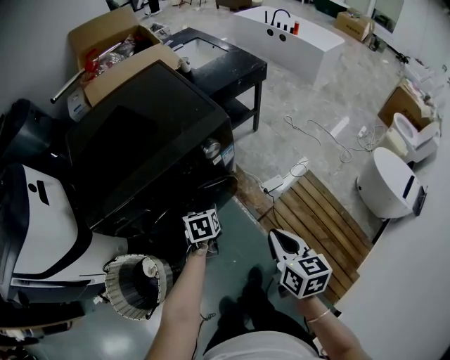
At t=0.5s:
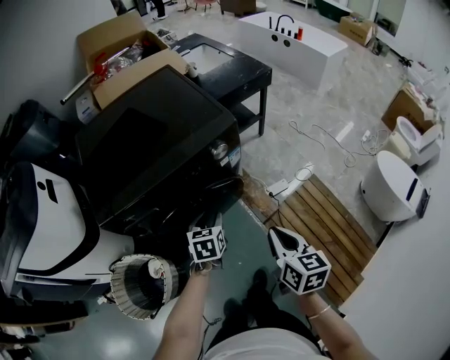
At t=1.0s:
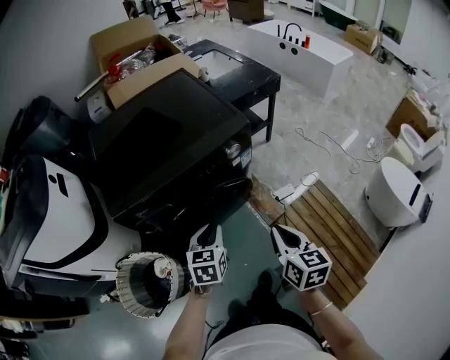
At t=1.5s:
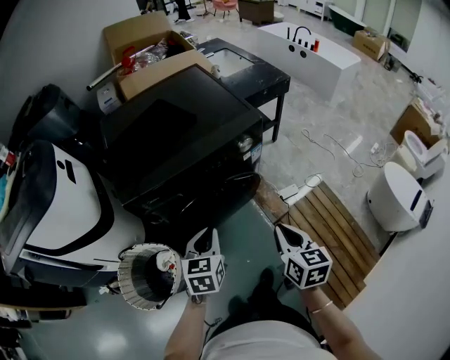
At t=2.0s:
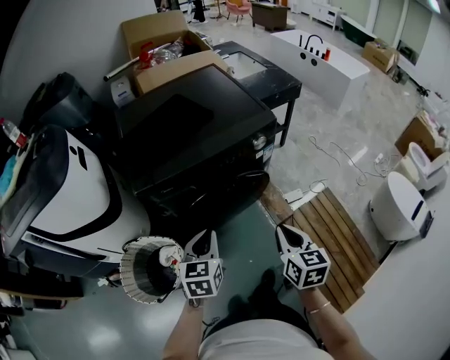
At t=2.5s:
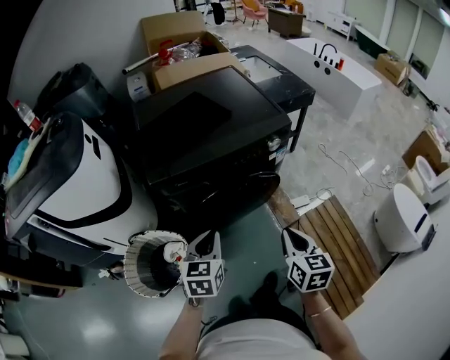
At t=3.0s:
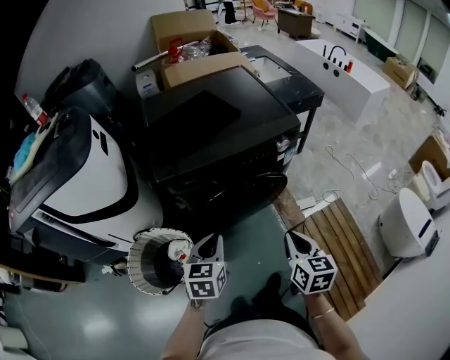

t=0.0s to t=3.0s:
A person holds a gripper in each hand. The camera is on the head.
t=0.0s to t=1.5s: The left gripper travels backward, upward and to the left by about 25 cm, and closes up; the right gripper goes about 10 cm to the left.
t=1.5s to t=3.0s: The right gripper shifts approximately 10 cm to the left. The left gripper moves to the left and backward, roughly 15 cm.

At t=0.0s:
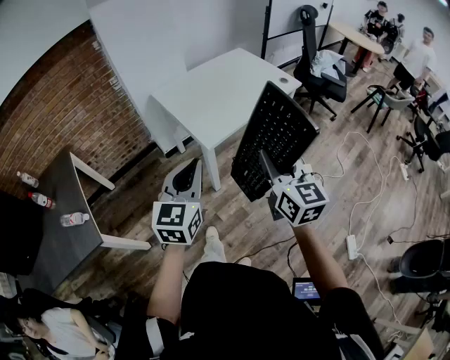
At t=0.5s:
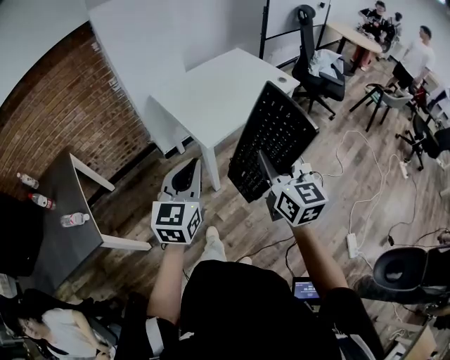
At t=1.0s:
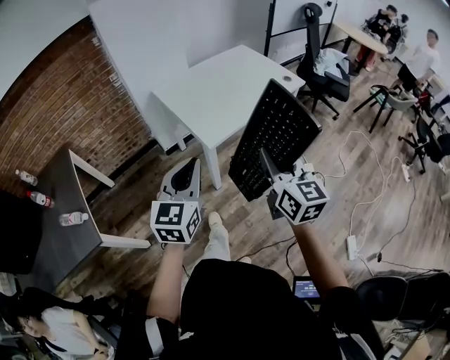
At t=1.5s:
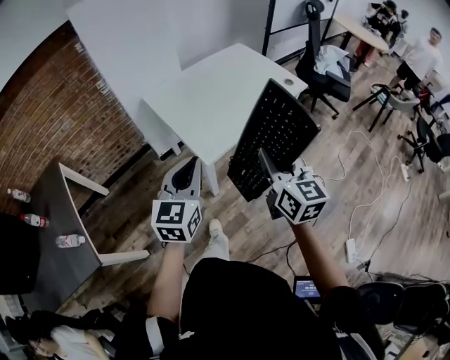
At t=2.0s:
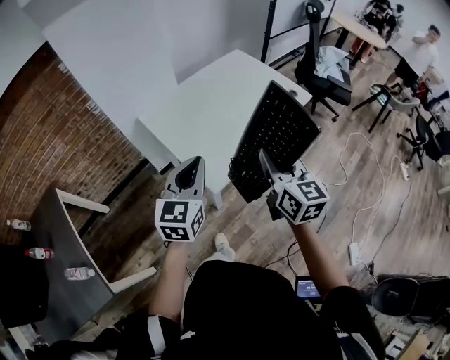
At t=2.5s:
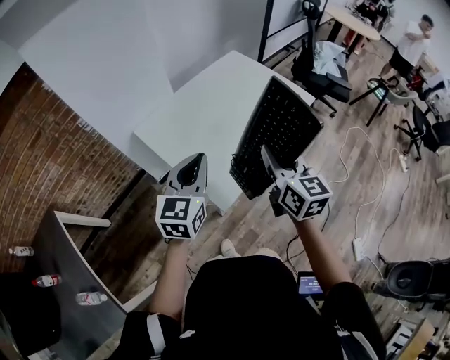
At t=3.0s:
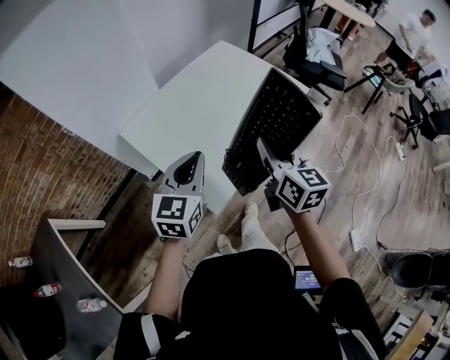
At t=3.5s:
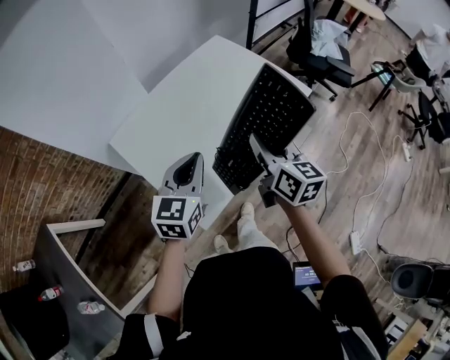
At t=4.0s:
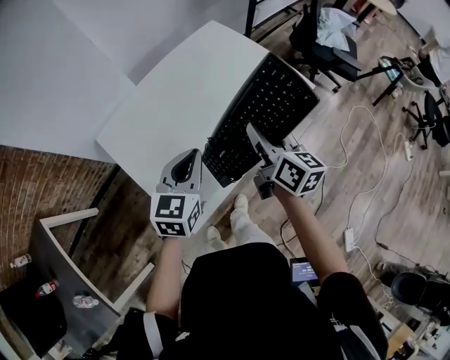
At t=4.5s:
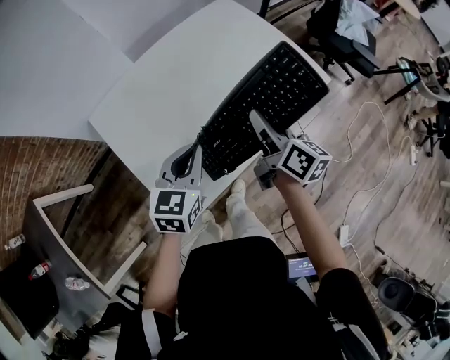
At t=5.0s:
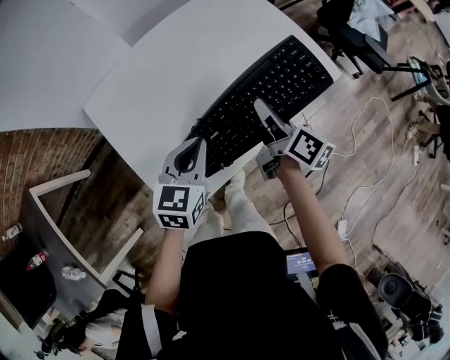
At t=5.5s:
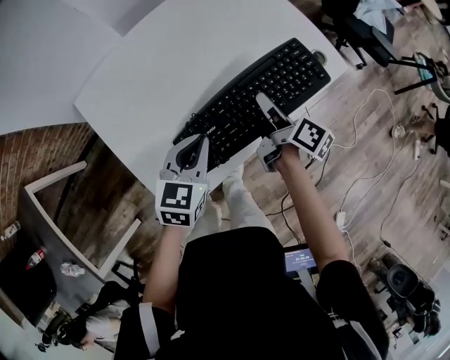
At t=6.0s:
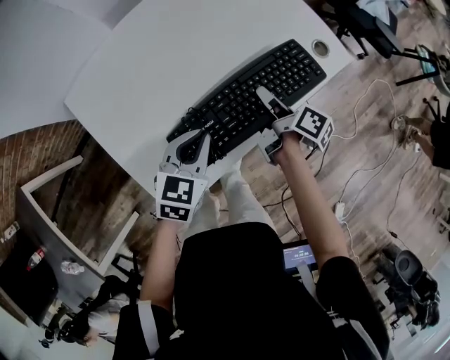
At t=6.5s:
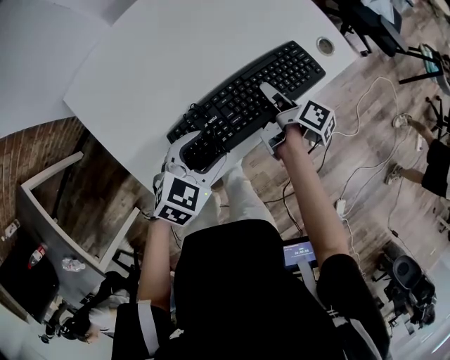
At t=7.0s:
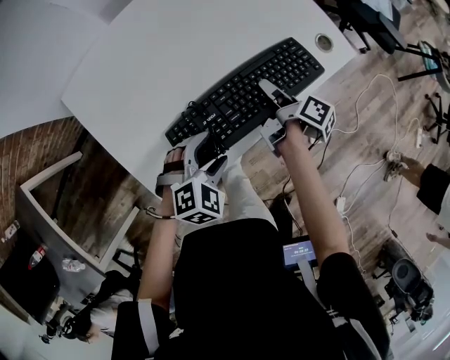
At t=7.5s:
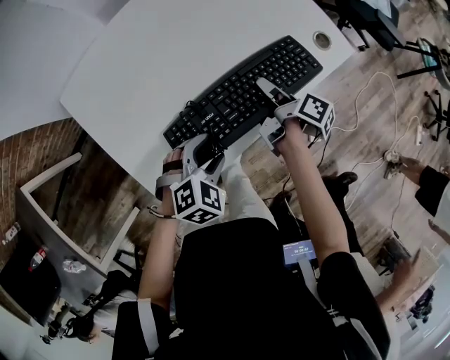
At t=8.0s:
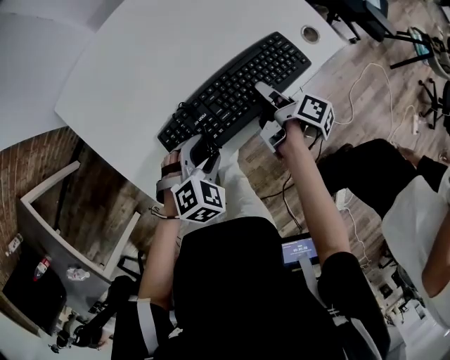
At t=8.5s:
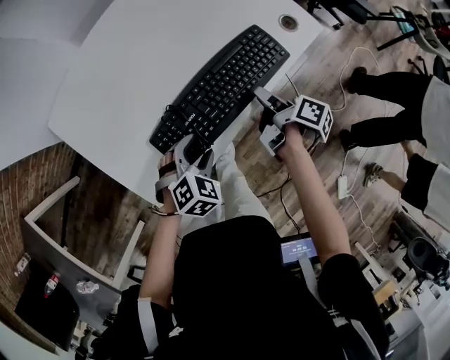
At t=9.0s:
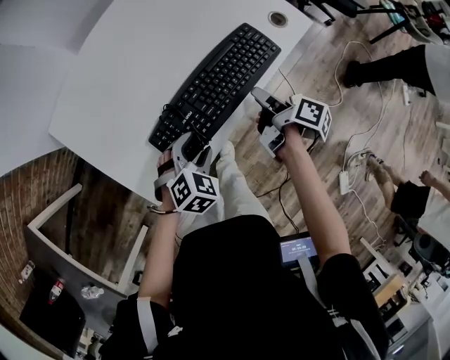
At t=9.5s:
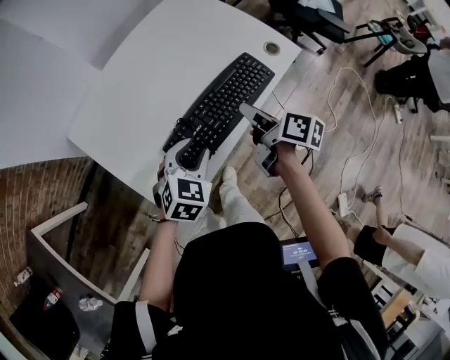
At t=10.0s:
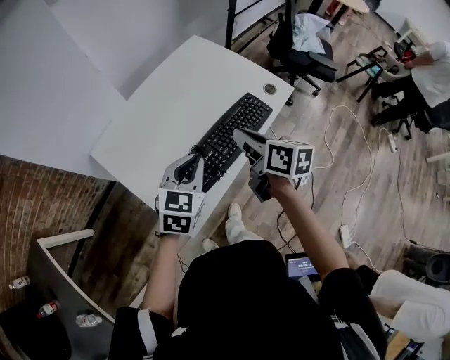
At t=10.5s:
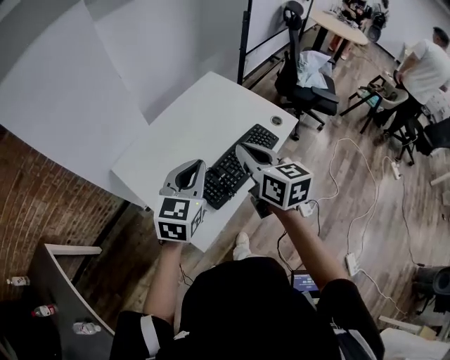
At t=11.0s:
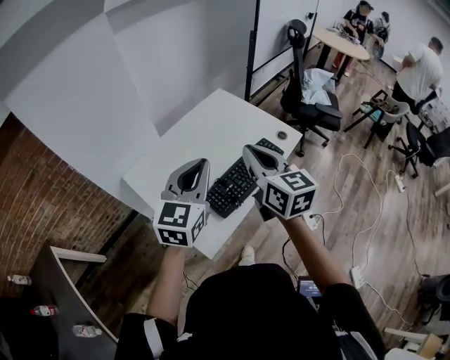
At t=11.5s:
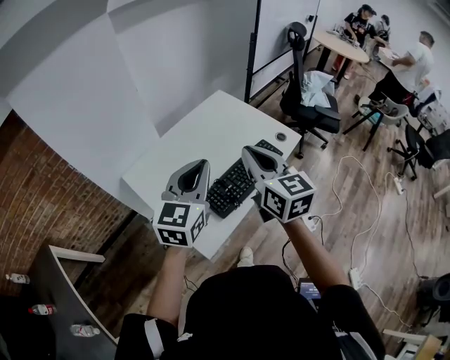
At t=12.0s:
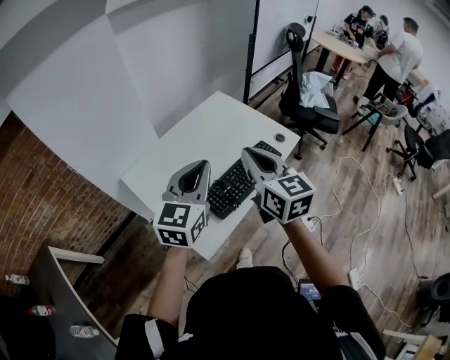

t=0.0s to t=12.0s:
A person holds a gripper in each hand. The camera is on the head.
t=0.0s to t=2.0s: The grippers both shift forward by some 30 cm.
t=2.0s to t=4.0s: The right gripper heads forward, covering about 30 cm, and rotates roughly 20 degrees, while the left gripper moves forward and downward, approximately 30 cm.
t=4.0s to t=6.0s: The two grippers go approximately 20 cm downward. The right gripper rolls clockwise, seen from behind, by some 40 degrees.
t=6.0s to t=8.0s: The left gripper goes roughly 10 cm downward and backward, rotates about 30 degrees, and opens.
t=8.0s to t=10.0s: The grippers both shift upward by some 25 cm. The right gripper rolls counterclockwise, seen from behind, by some 40 degrees, and closes its fingers; the left gripper rotates some 40 degrees, and closes.
t=10.0s to t=12.0s: The two grippers go about 20 cm upward. The right gripper swivels approximately 40 degrees, while the left gripper rotates approximately 20 degrees.

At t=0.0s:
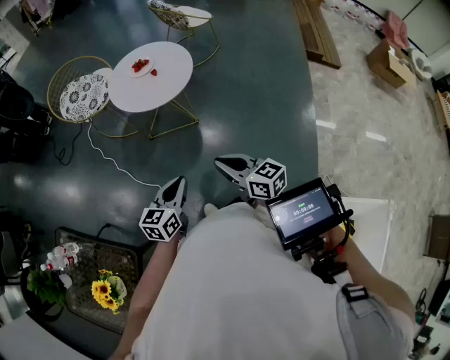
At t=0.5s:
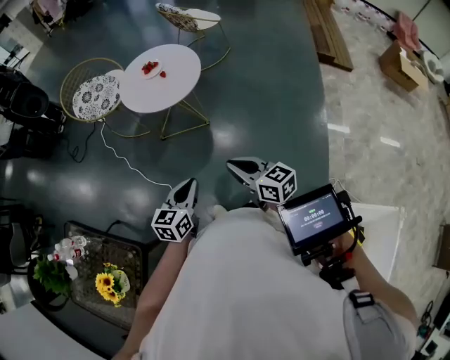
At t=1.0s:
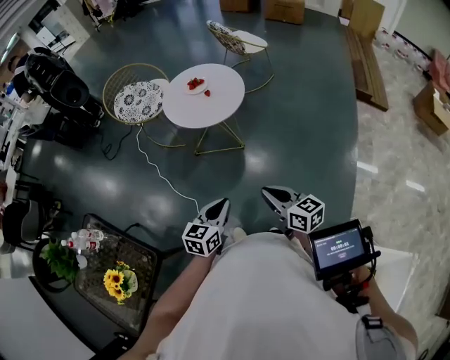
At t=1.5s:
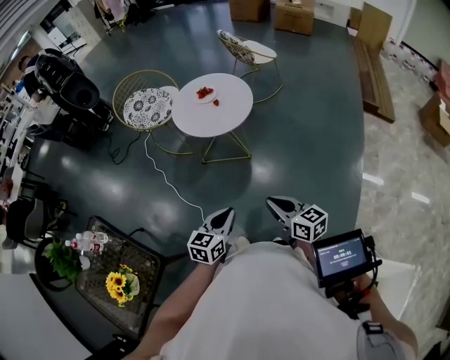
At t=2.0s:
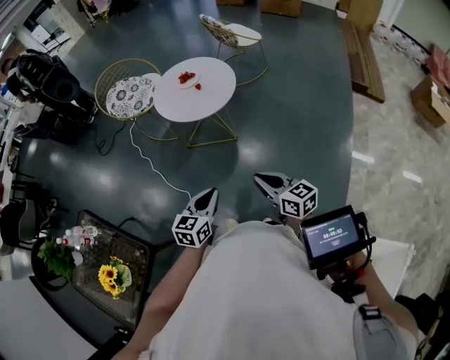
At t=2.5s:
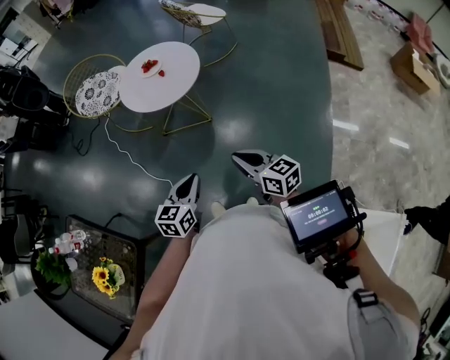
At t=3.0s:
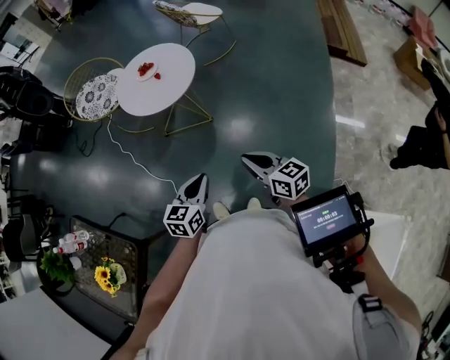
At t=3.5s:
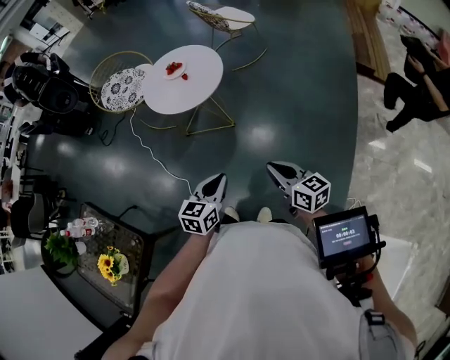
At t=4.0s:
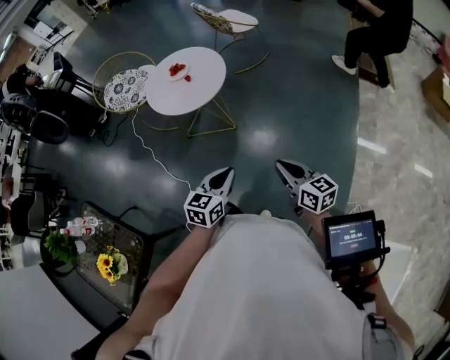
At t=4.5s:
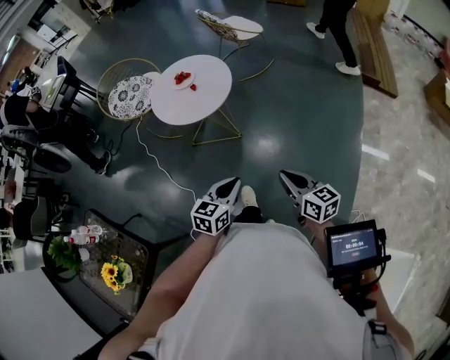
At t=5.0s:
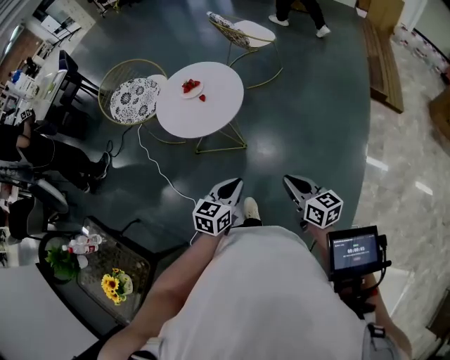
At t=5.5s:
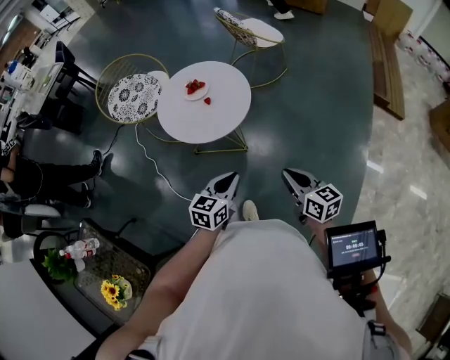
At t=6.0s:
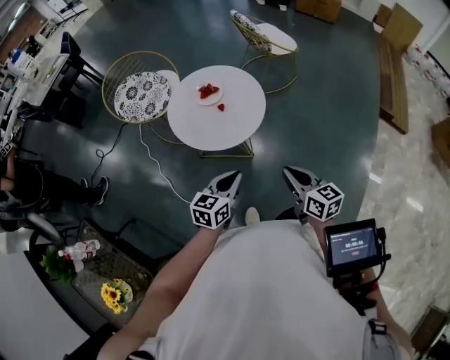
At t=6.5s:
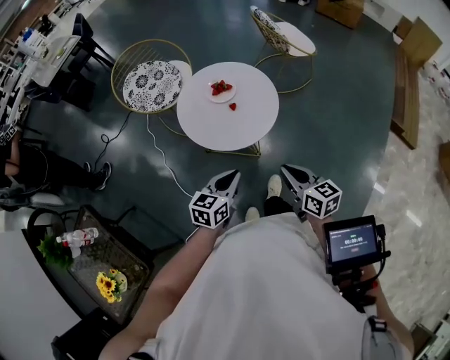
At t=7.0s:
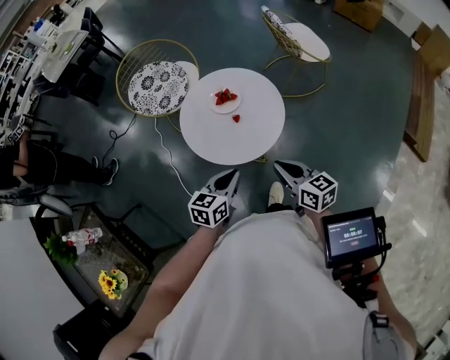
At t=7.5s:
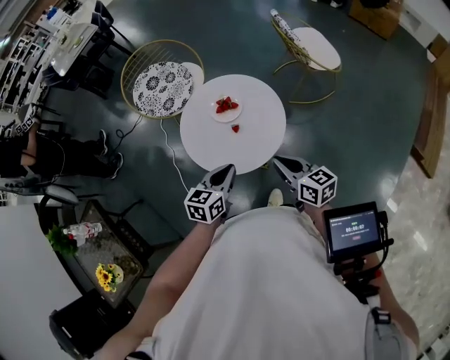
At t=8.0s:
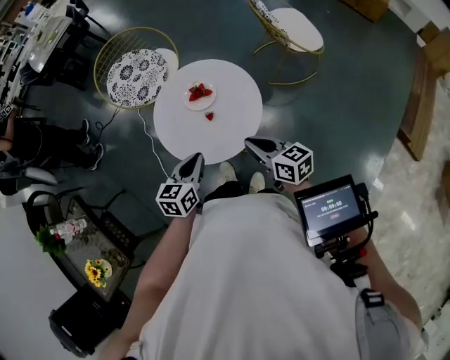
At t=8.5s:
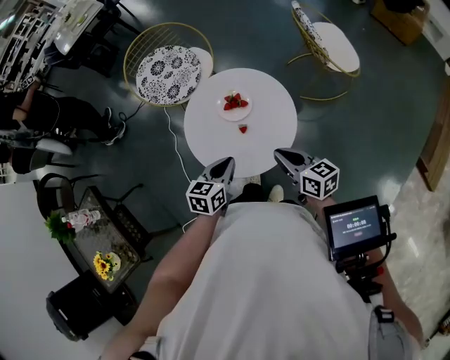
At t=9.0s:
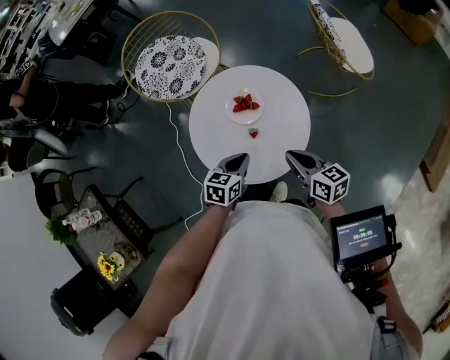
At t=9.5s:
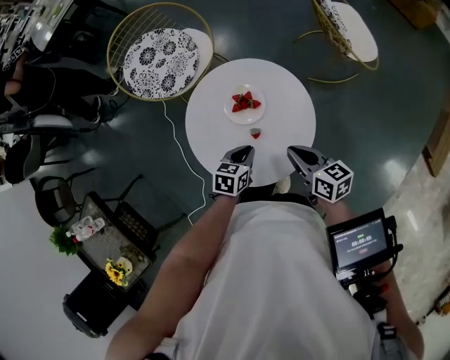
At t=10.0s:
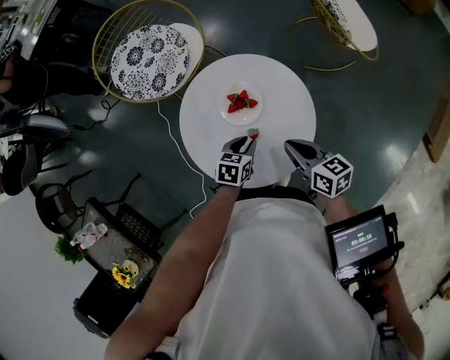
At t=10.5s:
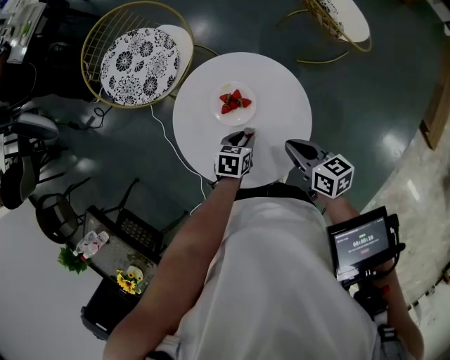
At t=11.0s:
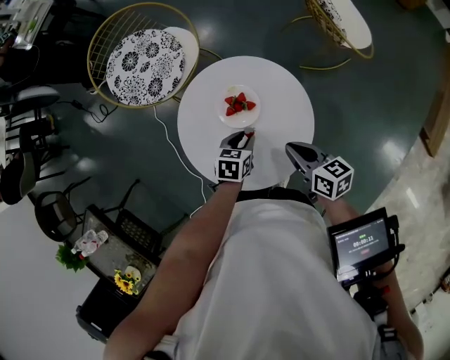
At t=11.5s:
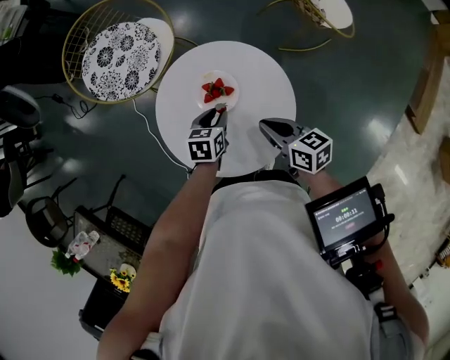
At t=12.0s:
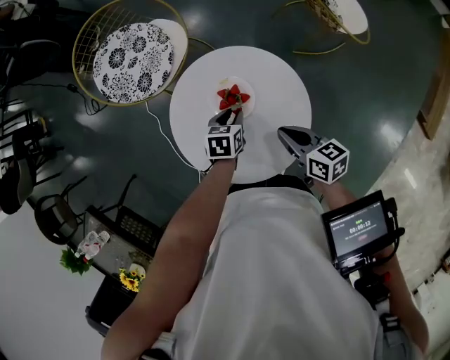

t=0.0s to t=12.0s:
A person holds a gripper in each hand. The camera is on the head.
t=0.0s to t=2.0s: The right gripper shifts roughly 5 cm to the right.
t=2.0s to t=4.0s: The grippers both shift to the right by roughly 15 cm.
t=4.0s to t=6.0s: Both grippers travel together forward and to the left, roughly 25 cm.
t=6.0s to t=8.0s: The left gripper ends up about 20 cm from where it was, and turns by approximately 30 degrees. Meanwhile the right gripper changes place by about 25 cm, and swivels approximately 30 degrees.
t=8.0s to t=10.0s: The left gripper is displaced downward and forward by about 25 cm, and changes its angle by about 30 degrees. Meanwhile the right gripper shifts some 15 cm forward and downward.
t=10.0s to t=12.0s: The left gripper heads forward, covering some 5 cm.
